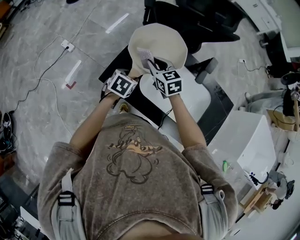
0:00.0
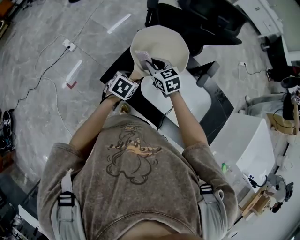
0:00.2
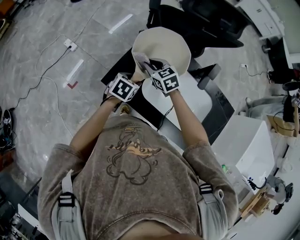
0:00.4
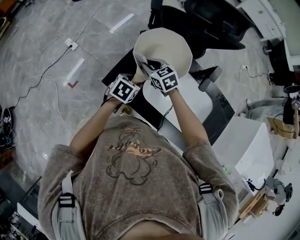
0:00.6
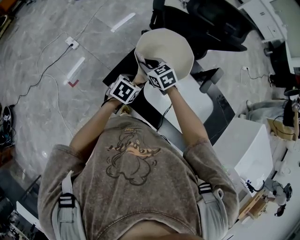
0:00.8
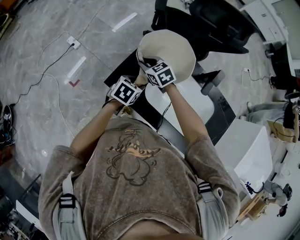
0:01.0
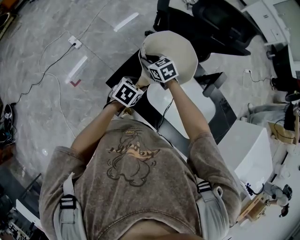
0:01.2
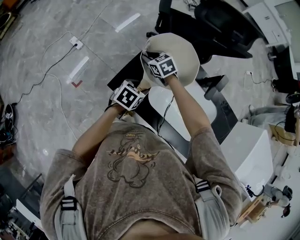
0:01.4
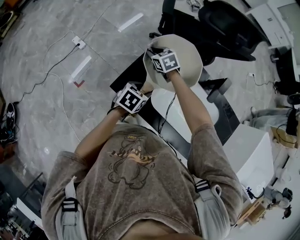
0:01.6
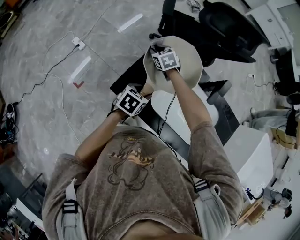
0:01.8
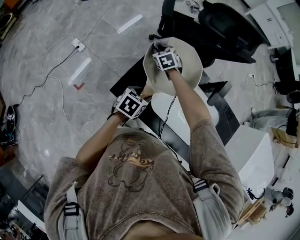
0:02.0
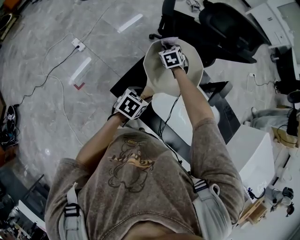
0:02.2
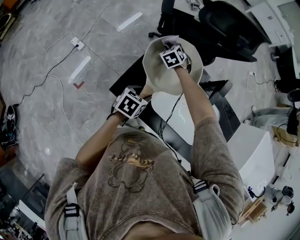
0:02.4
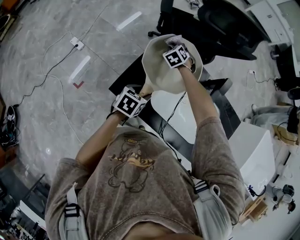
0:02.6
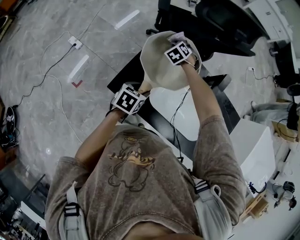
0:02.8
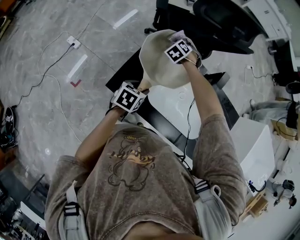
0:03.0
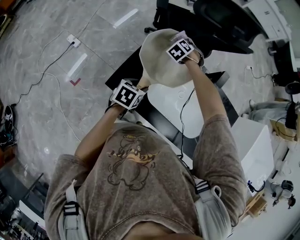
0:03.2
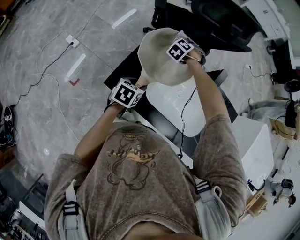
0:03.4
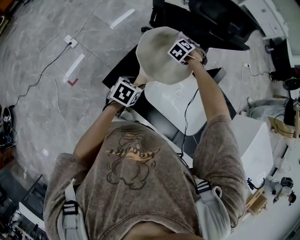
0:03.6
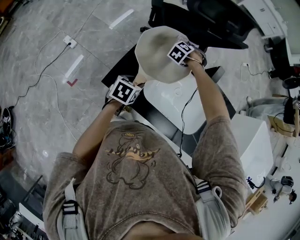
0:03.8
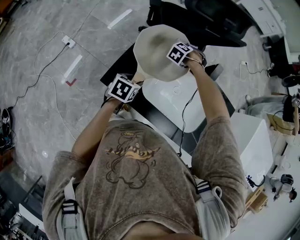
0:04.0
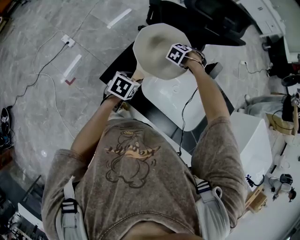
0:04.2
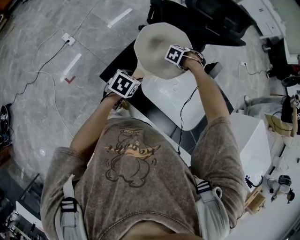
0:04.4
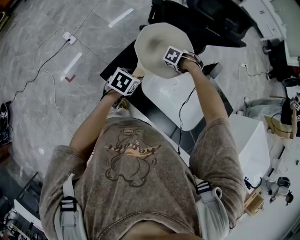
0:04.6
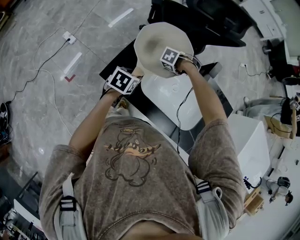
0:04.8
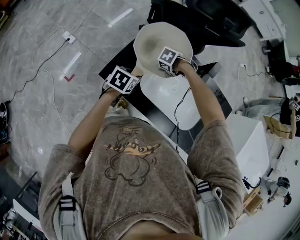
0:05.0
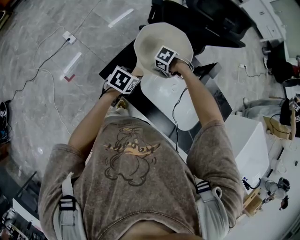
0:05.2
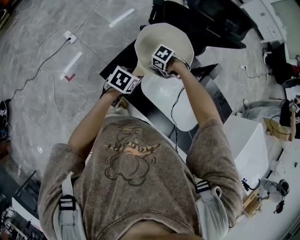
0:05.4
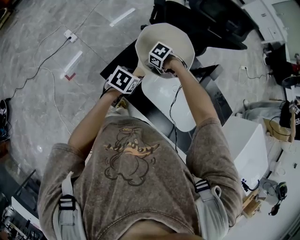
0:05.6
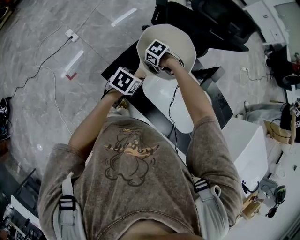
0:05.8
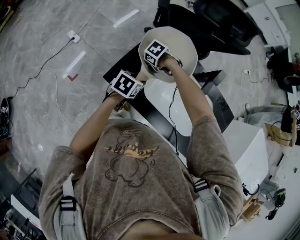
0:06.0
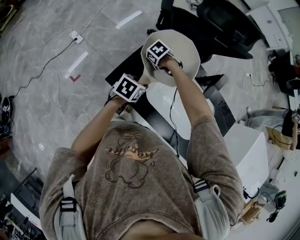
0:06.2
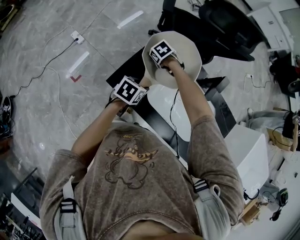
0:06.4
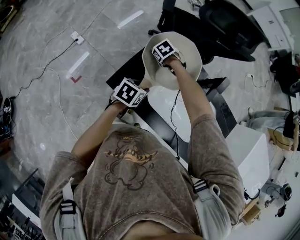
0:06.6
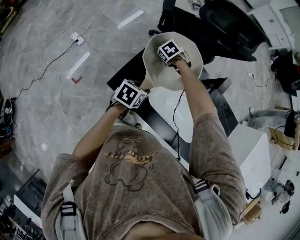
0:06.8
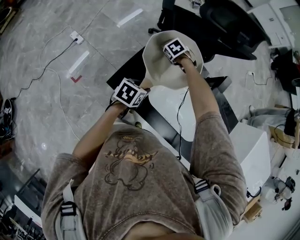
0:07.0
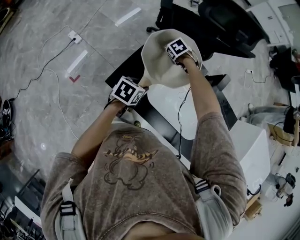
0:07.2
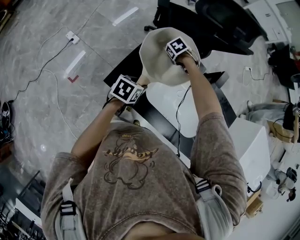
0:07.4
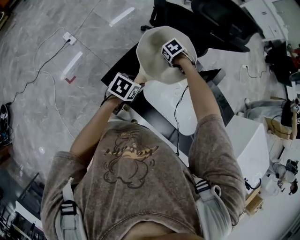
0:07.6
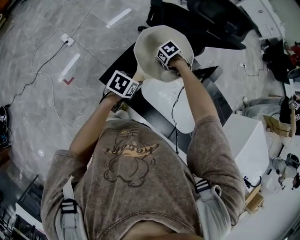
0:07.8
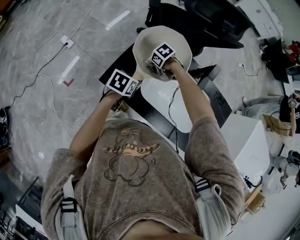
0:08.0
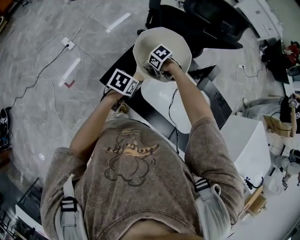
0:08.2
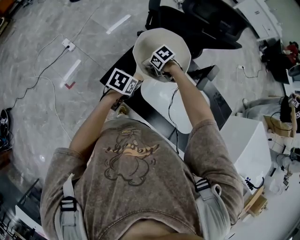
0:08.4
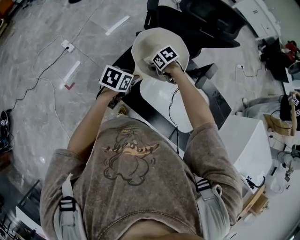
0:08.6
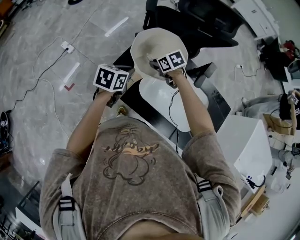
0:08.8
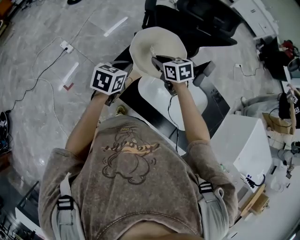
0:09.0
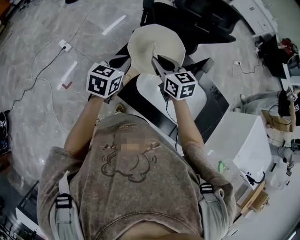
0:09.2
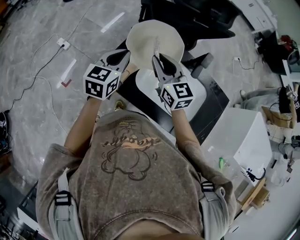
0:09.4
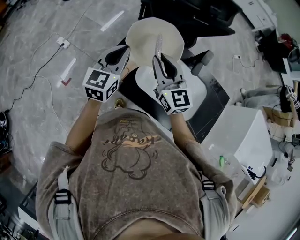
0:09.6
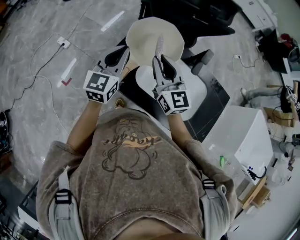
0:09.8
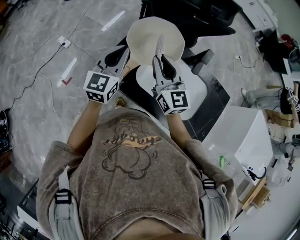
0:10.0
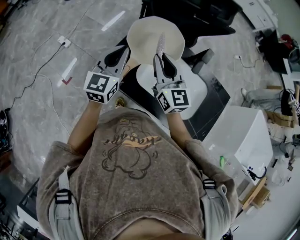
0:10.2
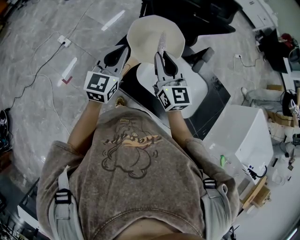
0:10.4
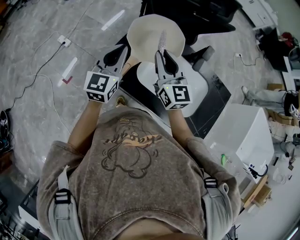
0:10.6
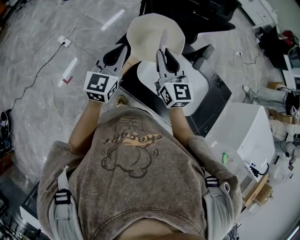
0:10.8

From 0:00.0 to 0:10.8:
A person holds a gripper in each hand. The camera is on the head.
From 0:00.0 to 0:01.6: The right gripper travels forward, to the left and downward by some 15 cm.
From 0:01.6 to 0:03.0: The right gripper moves to the right and forward, some 15 cm, and swivels about 40 degrees.
From 0:03.0 to 0:04.6: The right gripper moves approximately 20 cm, and rotates about 40 degrees.
From 0:04.6 to 0:06.2: The right gripper shifts by approximately 20 cm, and turns by some 30 degrees.
From 0:06.2 to 0:07.8: The right gripper shifts by approximately 10 cm.
From 0:07.8 to 0:09.2: The right gripper heads upward, covering some 20 cm, and tips its fingers upward by about 60 degrees; the left gripper is displaced upward by some 15 cm, swivels approximately 30 degrees, and closes.
From 0:09.2 to 0:10.8: The left gripper goes approximately 5 cm upward, and rotates approximately 30 degrees; the right gripper moves upward and backward, some 10 cm, and rotates some 30 degrees.

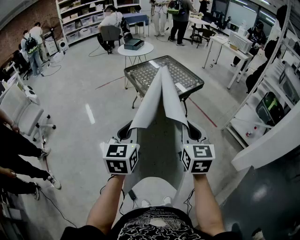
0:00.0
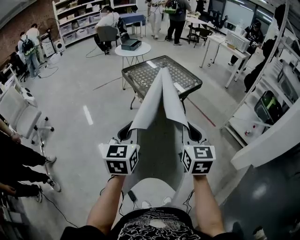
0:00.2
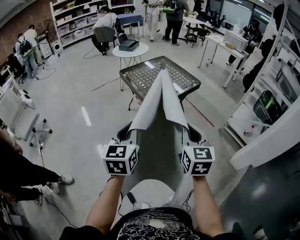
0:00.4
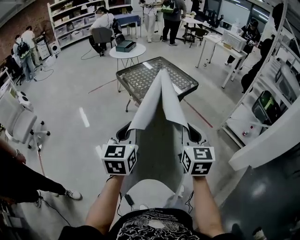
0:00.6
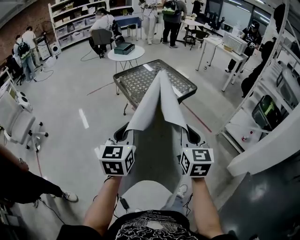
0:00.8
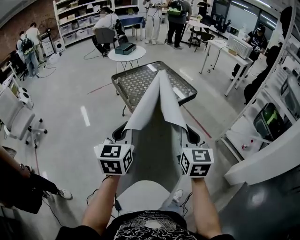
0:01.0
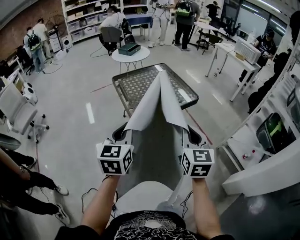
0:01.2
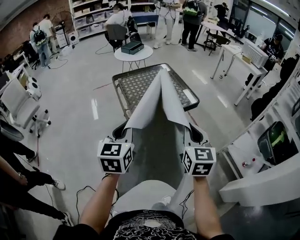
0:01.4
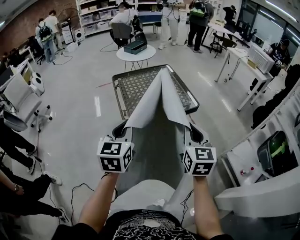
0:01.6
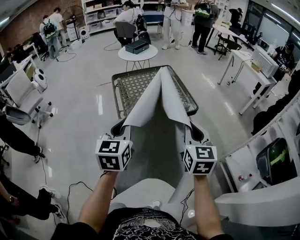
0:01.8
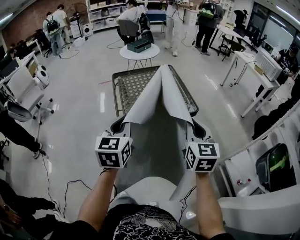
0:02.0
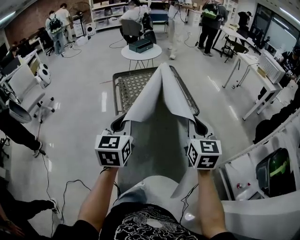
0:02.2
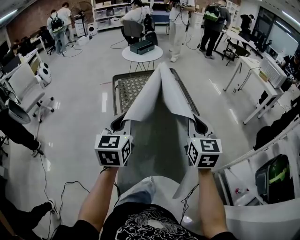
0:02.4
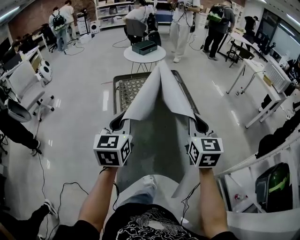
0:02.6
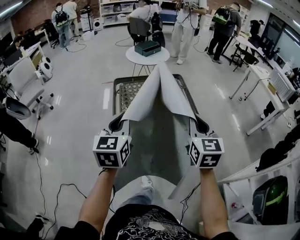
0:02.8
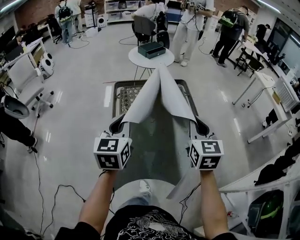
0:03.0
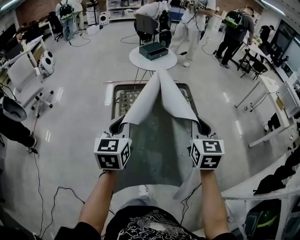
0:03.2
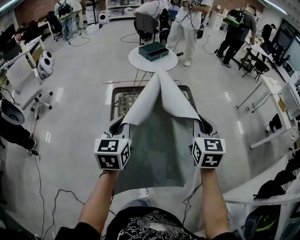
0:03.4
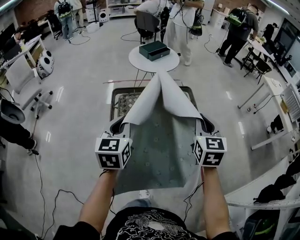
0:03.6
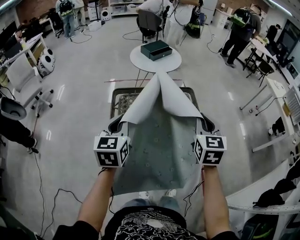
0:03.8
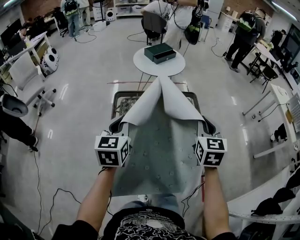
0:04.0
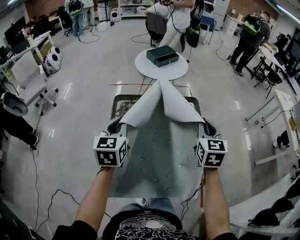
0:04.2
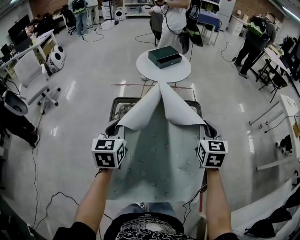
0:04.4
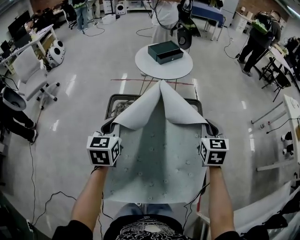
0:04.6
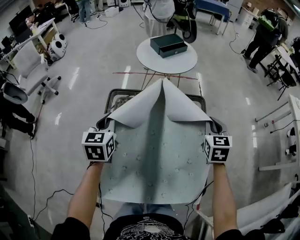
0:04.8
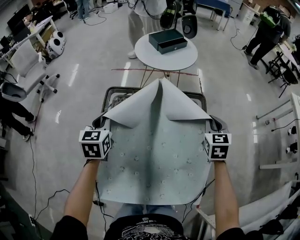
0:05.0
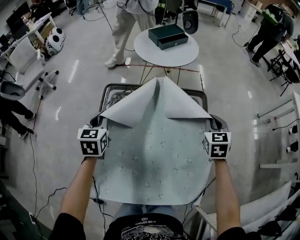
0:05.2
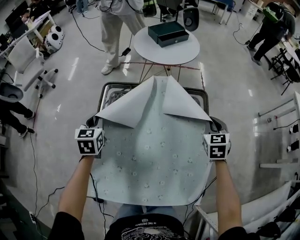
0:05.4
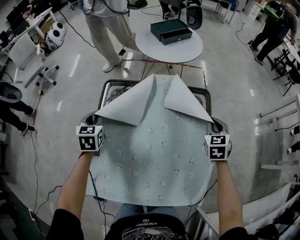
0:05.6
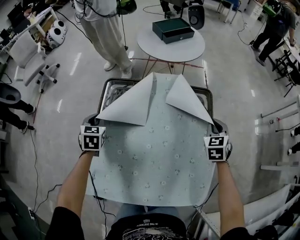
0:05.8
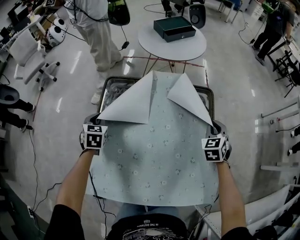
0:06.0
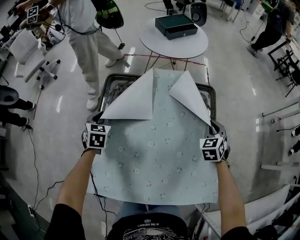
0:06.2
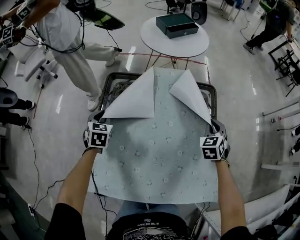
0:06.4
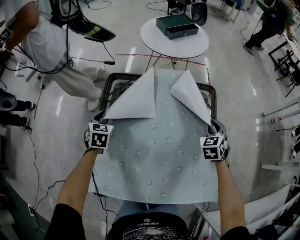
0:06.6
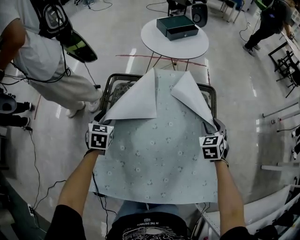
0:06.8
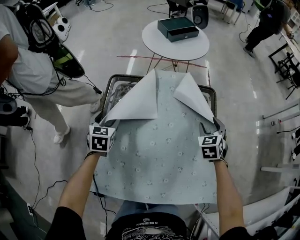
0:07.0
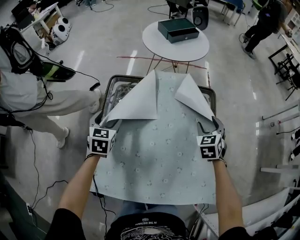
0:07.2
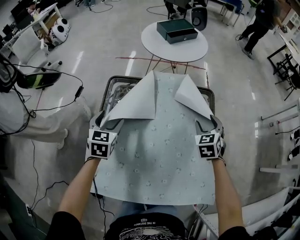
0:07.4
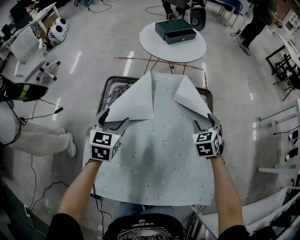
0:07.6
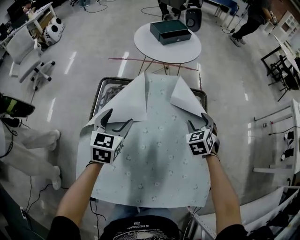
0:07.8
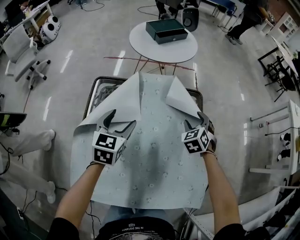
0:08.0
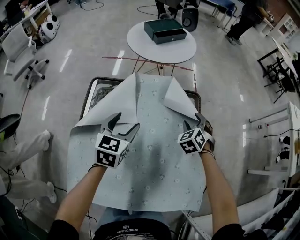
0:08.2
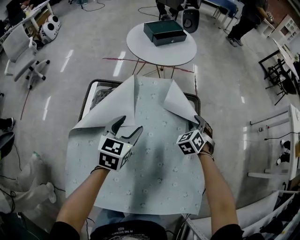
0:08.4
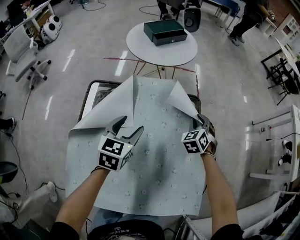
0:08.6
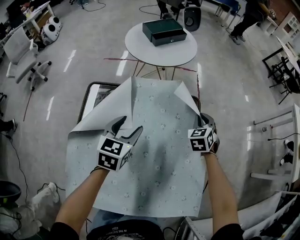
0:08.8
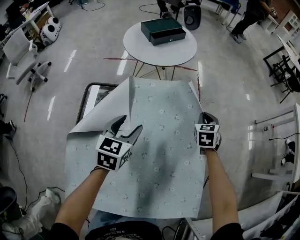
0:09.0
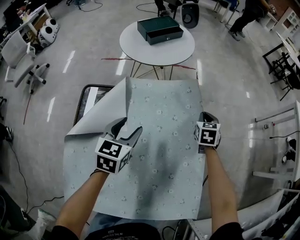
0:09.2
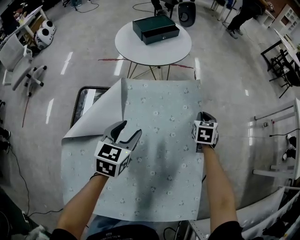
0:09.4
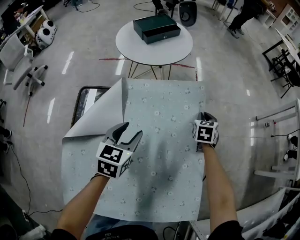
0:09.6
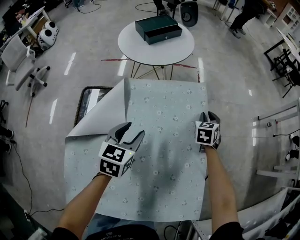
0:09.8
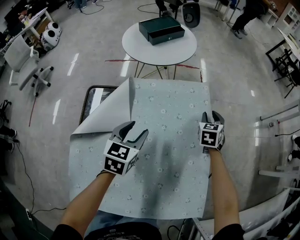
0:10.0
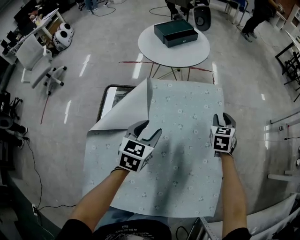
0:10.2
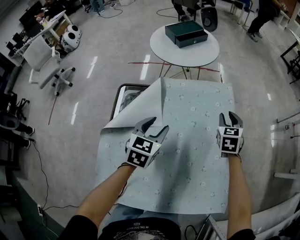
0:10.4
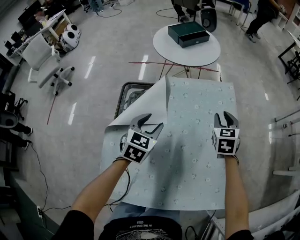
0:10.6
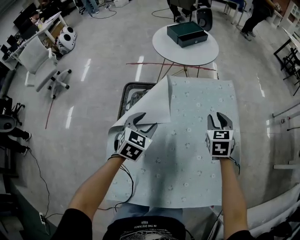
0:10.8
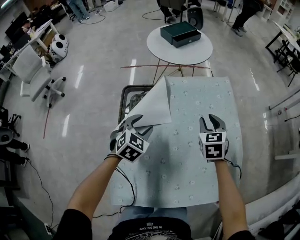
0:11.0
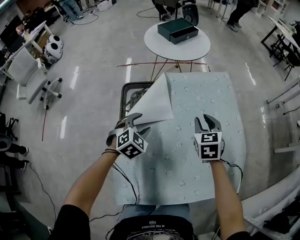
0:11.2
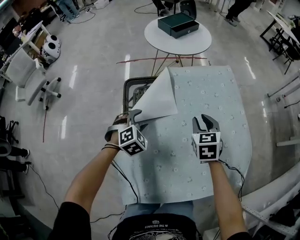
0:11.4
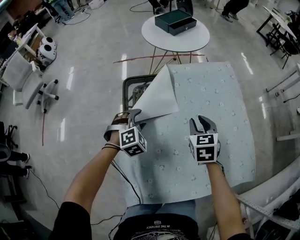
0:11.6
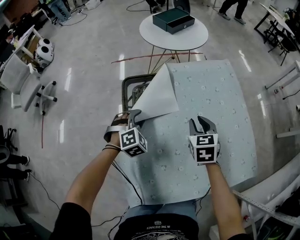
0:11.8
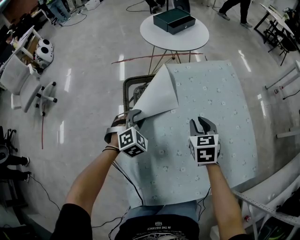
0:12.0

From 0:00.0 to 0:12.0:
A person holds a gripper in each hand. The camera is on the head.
From 0:00.0 to 0:01.6: The grippers both shift forward and to the right by roughly 35 cm.
From 0:01.6 to 0:03.0: The grippers both shift forward by about 30 cm.
From 0:03.0 to 0:04.4: Both grippers travel together forward, about 25 cm.
From 0:04.4 to 0:06.0: The right gripper heads downward and forward, covering some 20 cm, and rotates approximately 30 degrees; the left gripper heads downward and to the left, covering approximately 25 cm, and rotates about 30 degrees.
From 0:06.0 to 0:07.6: The left gripper heads to the right and upward, covering about 15 cm, and opens its fingers, while the right gripper ends up roughly 5 cm from where it was, and opens up.
From 0:07.6 to 0:09.0: The right gripper moves forward and to the right, roughly 15 cm, and closes its fingers, while the left gripper shifts approximately 15 cm to the right and forward.
From 0:09.0 to 0:10.4: The right gripper shifts some 5 cm backward, and opens up.
From 0:10.4 to 0:12.0: The right gripper moves to the left and backward, roughly 30 cm; the left gripper moves to the left and downward, some 20 cm, and rotates around the line of its fingers by about 50 degrees, clockwise from behind.

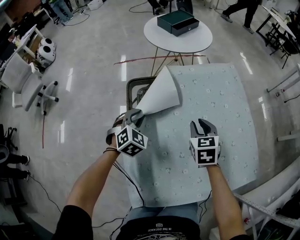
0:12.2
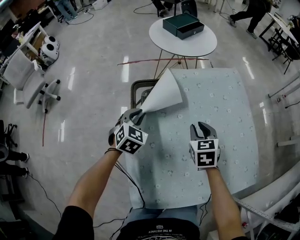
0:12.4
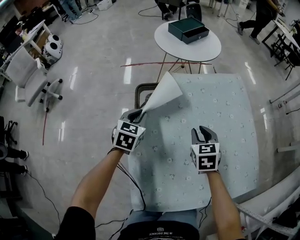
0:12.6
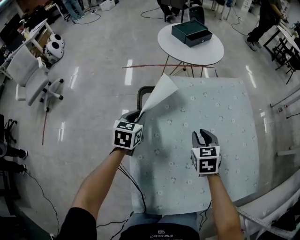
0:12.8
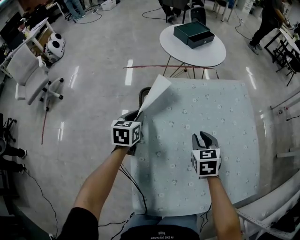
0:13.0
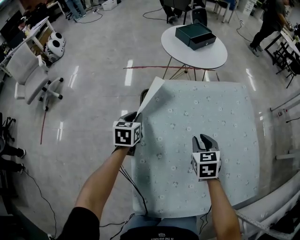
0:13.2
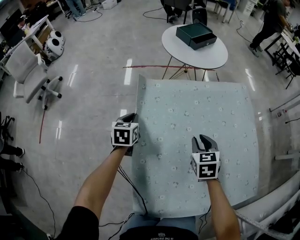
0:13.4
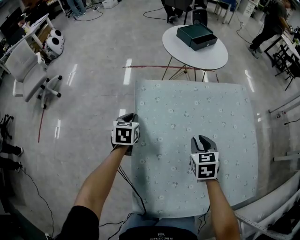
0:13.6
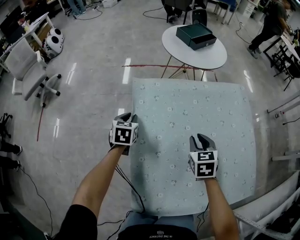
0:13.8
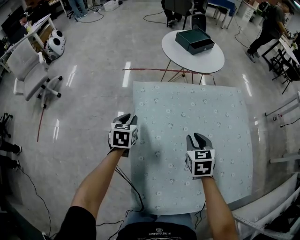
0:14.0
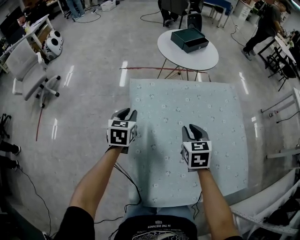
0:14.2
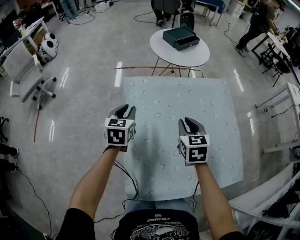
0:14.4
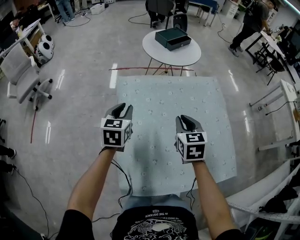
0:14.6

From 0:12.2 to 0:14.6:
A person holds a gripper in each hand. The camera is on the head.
From 0:12.2 to 0:13.4: The left gripper is displaced to the left by approximately 10 cm, and rotates around the line of its fingers by some 50 degrees, counterclockwise from behind; the right gripper is displaced to the left by roughly 5 cm.
From 0:13.4 to 0:14.6: The left gripper is displaced upward, backward and to the right by approximately 20 cm, while the right gripper heads upward, covering roughly 15 cm.
